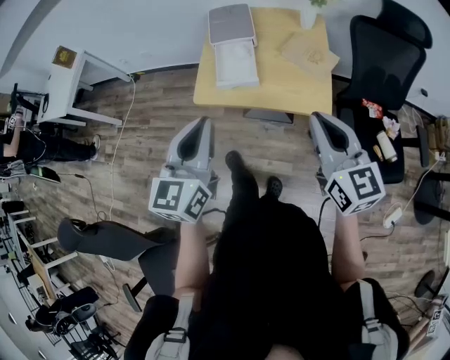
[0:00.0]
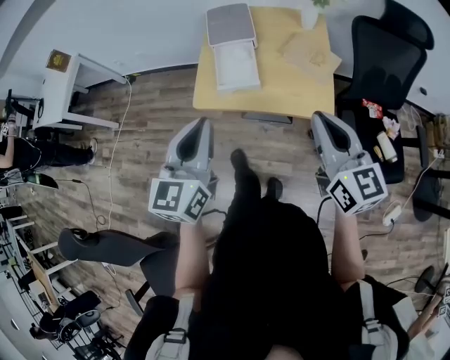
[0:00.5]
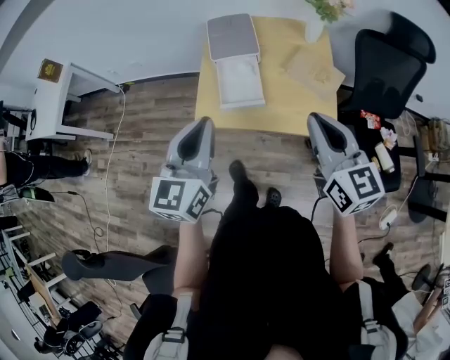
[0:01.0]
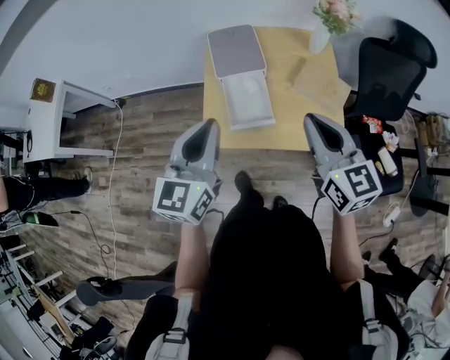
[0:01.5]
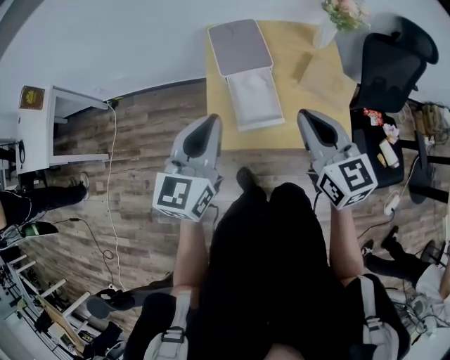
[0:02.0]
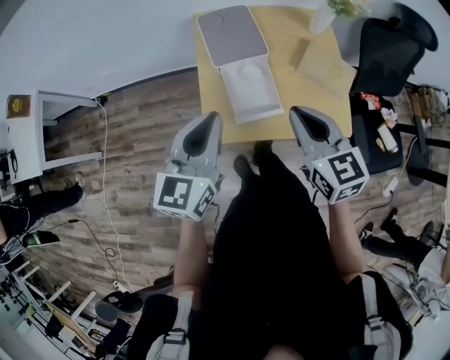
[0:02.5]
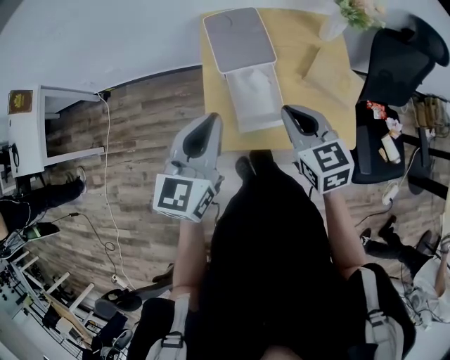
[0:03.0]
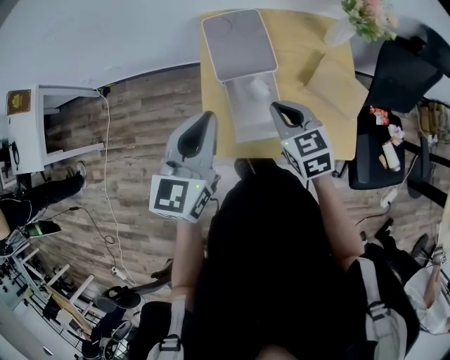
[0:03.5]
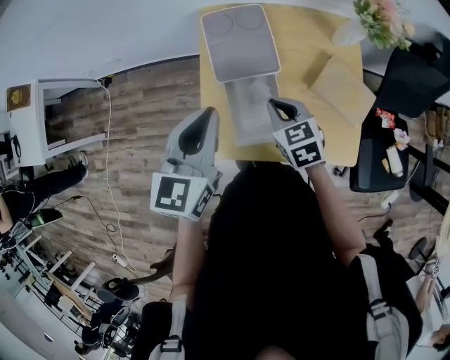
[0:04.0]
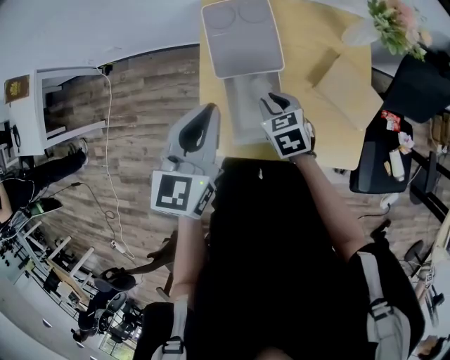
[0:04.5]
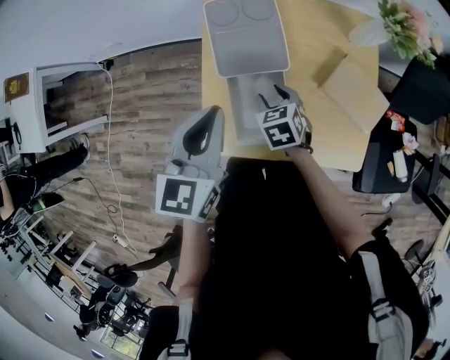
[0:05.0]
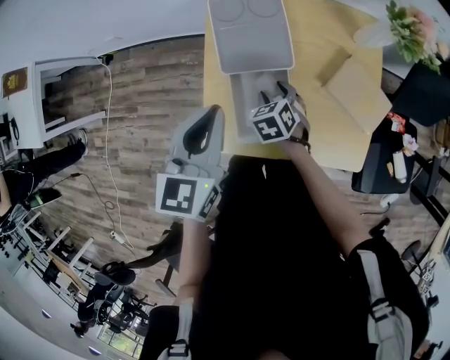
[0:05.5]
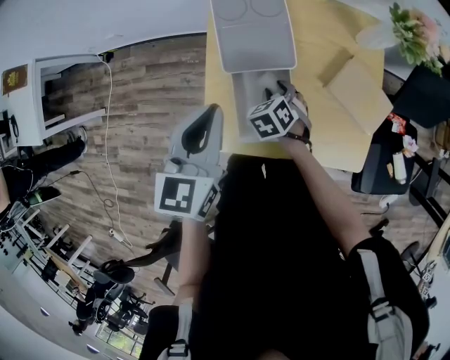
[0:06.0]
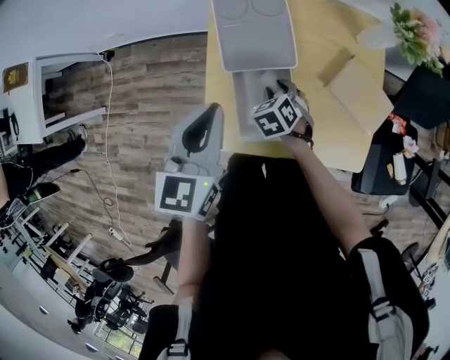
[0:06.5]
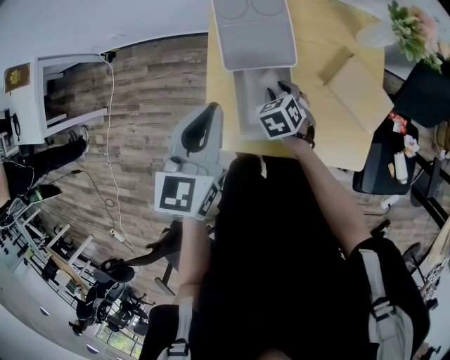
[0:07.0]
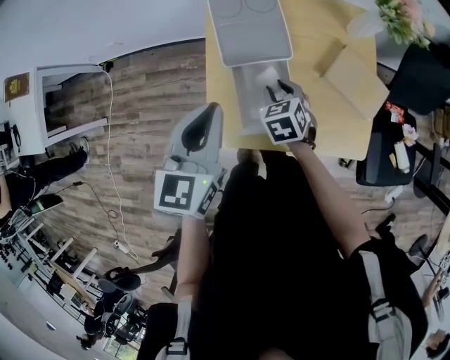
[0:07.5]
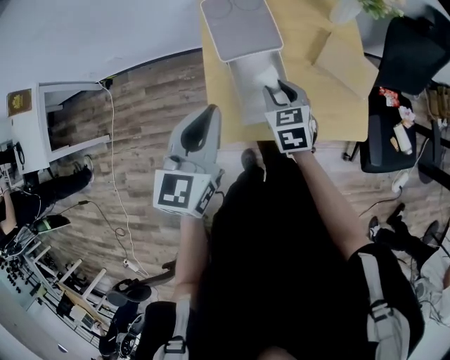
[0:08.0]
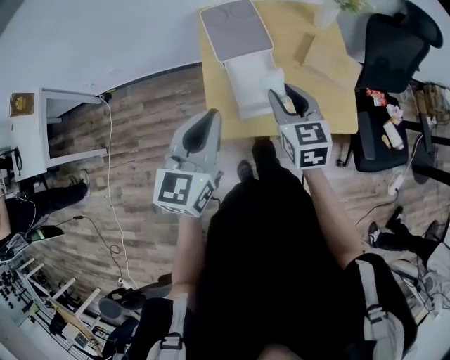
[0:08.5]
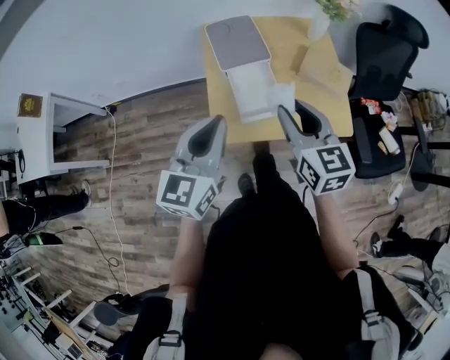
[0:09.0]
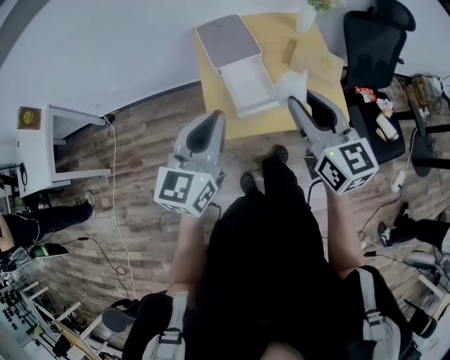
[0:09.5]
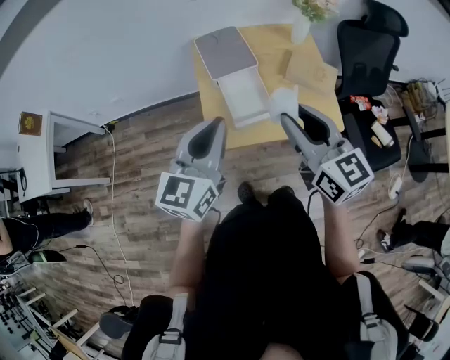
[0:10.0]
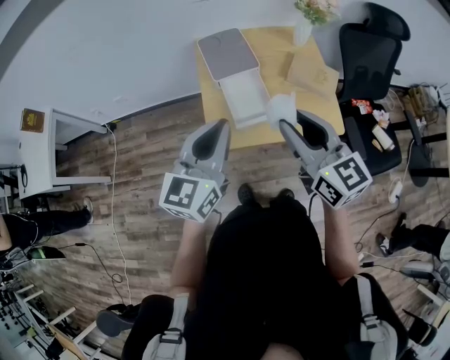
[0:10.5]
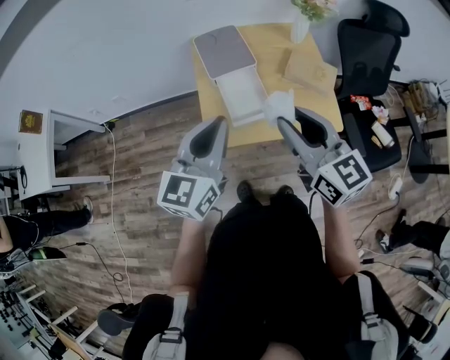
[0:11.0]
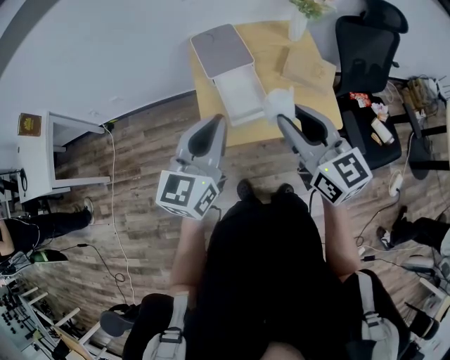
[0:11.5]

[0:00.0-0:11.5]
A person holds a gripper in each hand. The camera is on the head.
0:00.0 to 0:02.0: The two grippers go approximately 30 cm forward and to the left.
0:02.0 to 0:04.0: The right gripper heads downward and forward, covering roughly 30 cm, and changes its angle by about 30 degrees, while the left gripper goes some 15 cm forward.
0:04.0 to 0:06.0: The left gripper changes place by approximately 5 cm; the right gripper goes approximately 15 cm downward, rotates some 30 degrees, and opens.
0:06.0 to 0:07.5: The right gripper goes roughly 5 cm upward.
0:07.5 to 0:09.5: The left gripper travels backward and upward by some 25 cm, and rotates roughly 20 degrees. The right gripper moves upward and backward, some 40 cm, and tips its fingers upward by some 50 degrees.
0:09.5 to 0:11.5: The grippers move only a little.

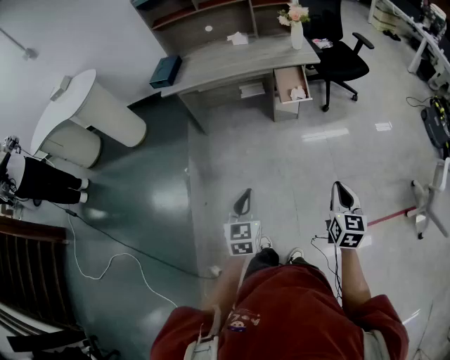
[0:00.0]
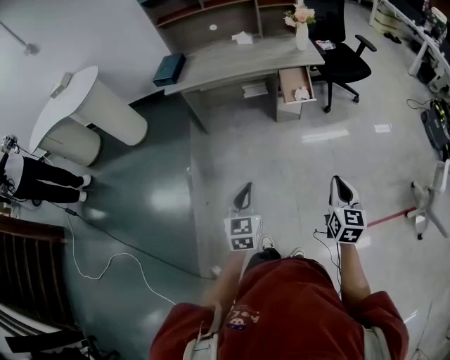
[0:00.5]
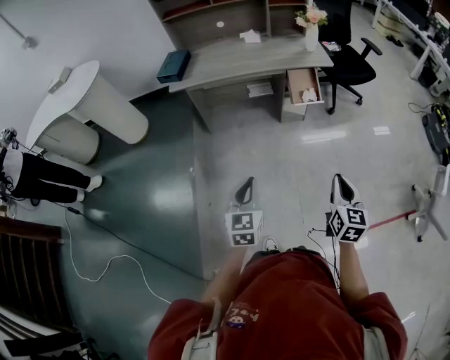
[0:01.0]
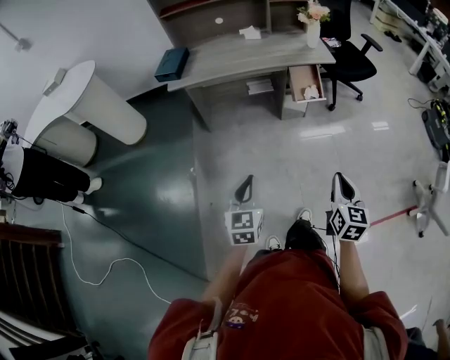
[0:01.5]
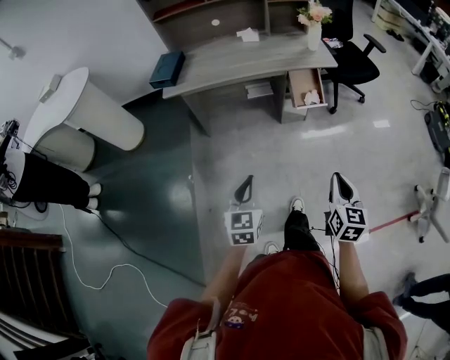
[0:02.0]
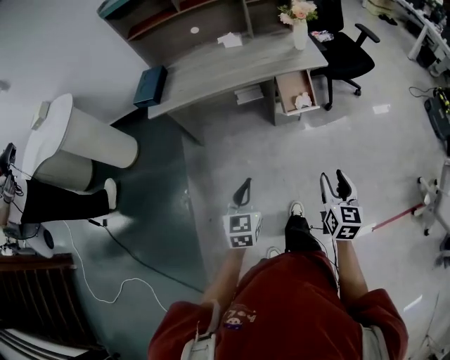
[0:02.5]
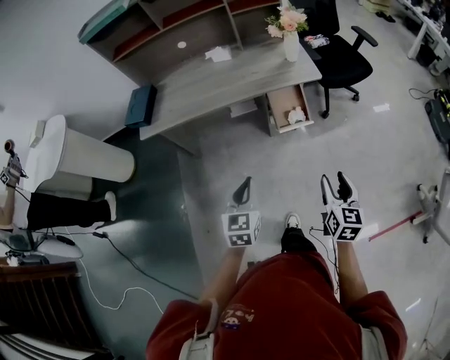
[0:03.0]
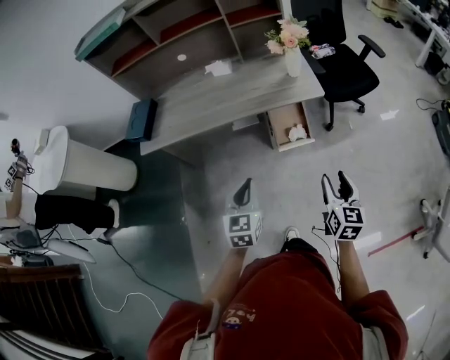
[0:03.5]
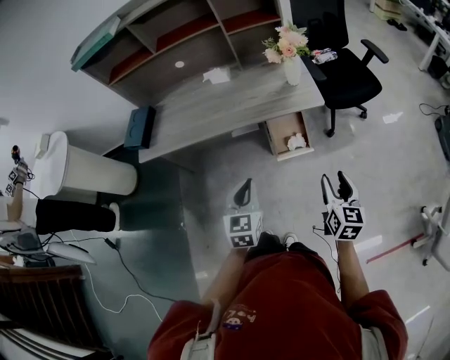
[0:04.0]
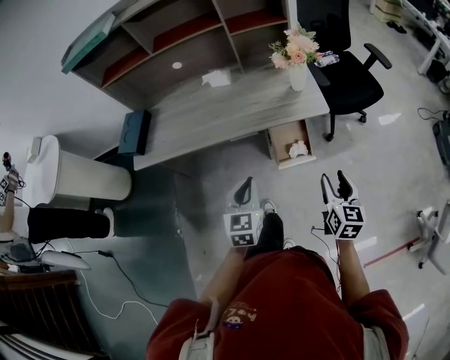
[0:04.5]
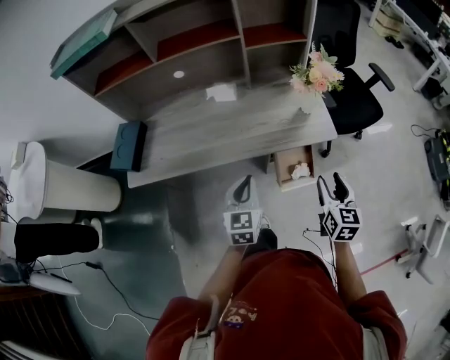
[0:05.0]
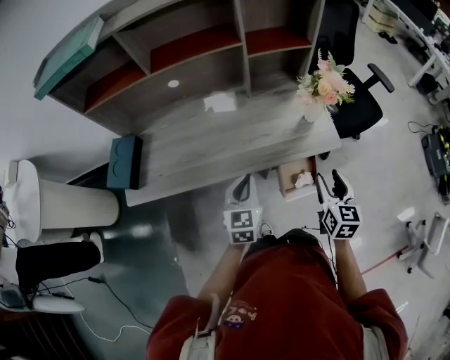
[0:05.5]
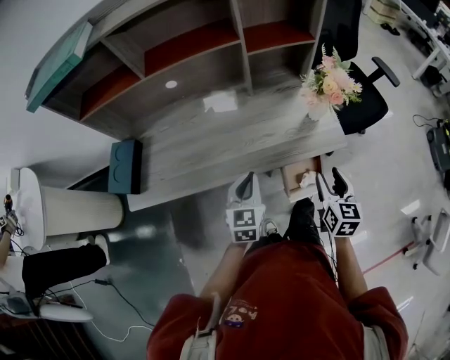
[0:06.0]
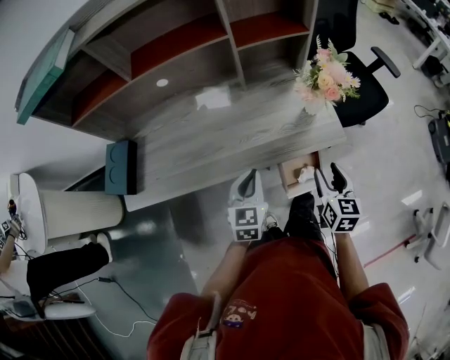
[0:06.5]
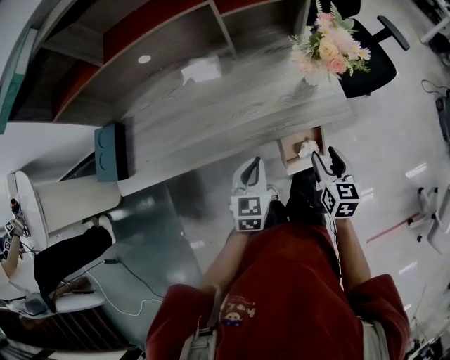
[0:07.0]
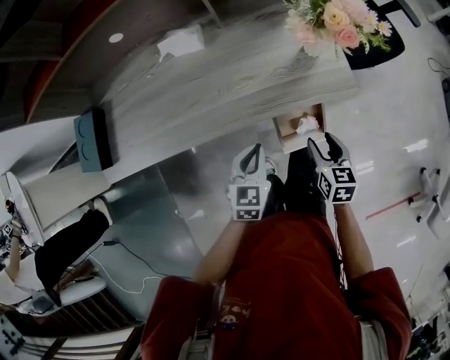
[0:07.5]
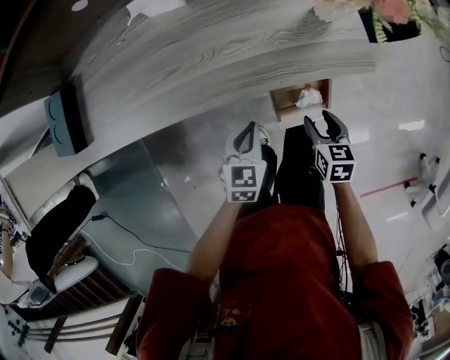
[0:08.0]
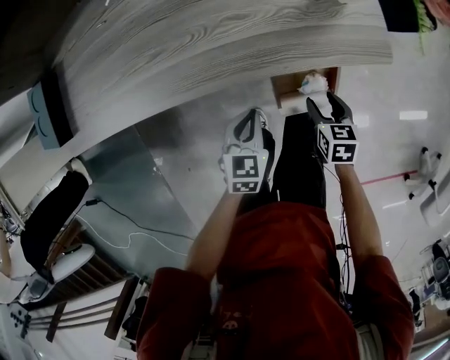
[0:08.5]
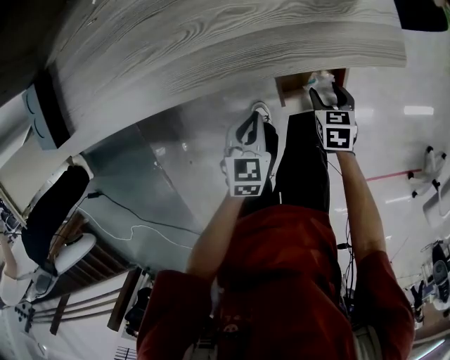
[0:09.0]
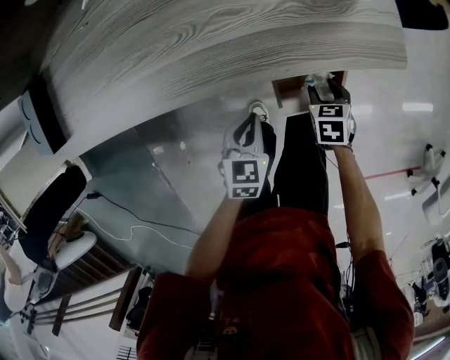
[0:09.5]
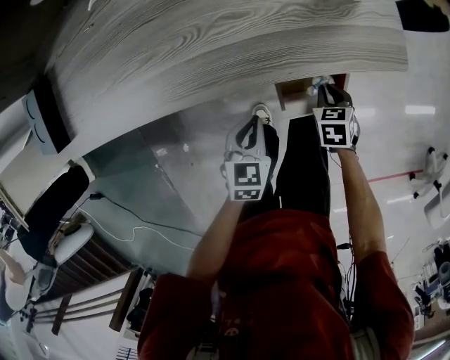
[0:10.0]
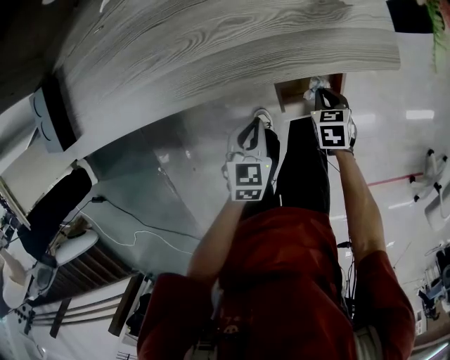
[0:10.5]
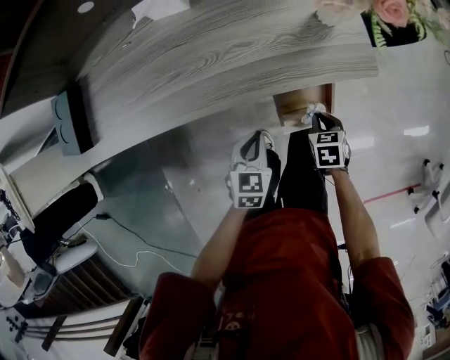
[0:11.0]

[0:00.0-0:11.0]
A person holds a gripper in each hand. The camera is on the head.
0:00.0 to 0:02.0: The grippers both shift forward and to the left by some 15 cm.
0:02.0 to 0:03.5: Both grippers travel together forward and to the right, some 35 cm. The right gripper opens.
0:03.5 to 0:05.5: Both grippers travel together forward, some 30 cm.
0:05.5 to 0:07.5: The left gripper travels downward and to the right by about 20 cm, while the right gripper shifts approximately 20 cm downward, and rotates roughly 20 degrees.
0:07.5 to 0:09.0: The grippers both shift downward by roughly 20 cm. The right gripper turns by some 20 degrees.
0:09.0 to 0:11.0: The grippers both shift upward by roughly 5 cm. The right gripper closes up.

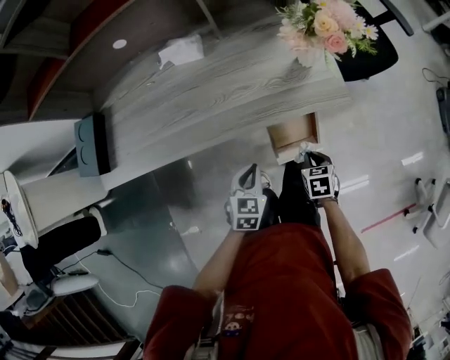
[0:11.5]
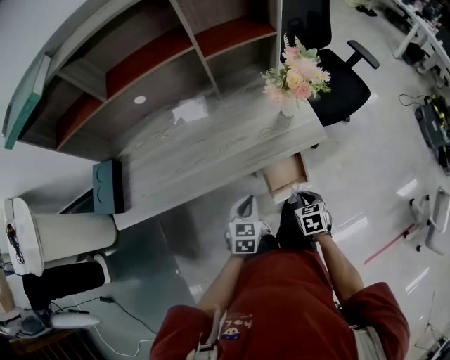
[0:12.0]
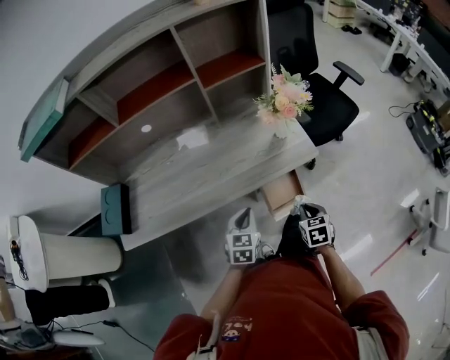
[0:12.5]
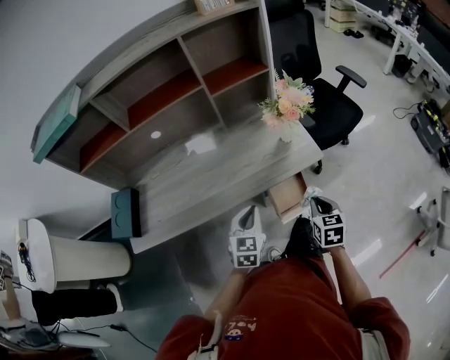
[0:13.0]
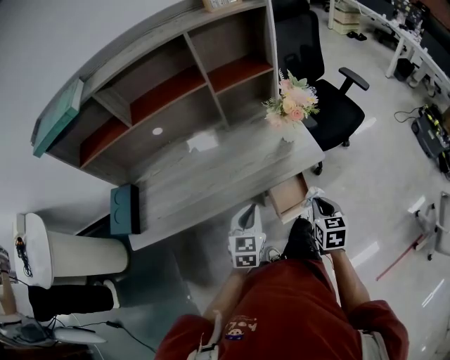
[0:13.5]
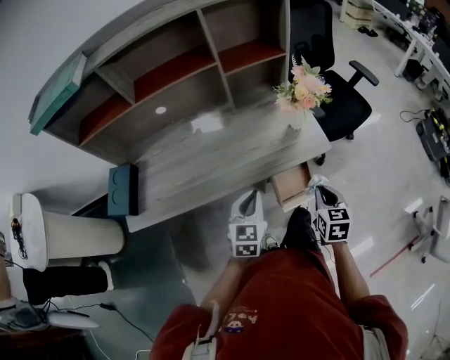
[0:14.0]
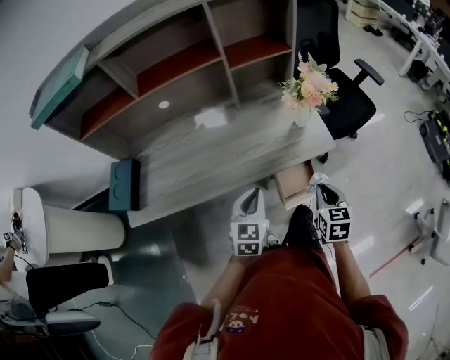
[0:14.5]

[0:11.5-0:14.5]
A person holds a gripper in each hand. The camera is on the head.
0:11.5 to 0:13.0: The grippers both shift upward by about 20 cm. The right gripper changes its angle by approximately 30 degrees.
0:13.0 to 0:14.5: There are only small adjustments of the grippers.

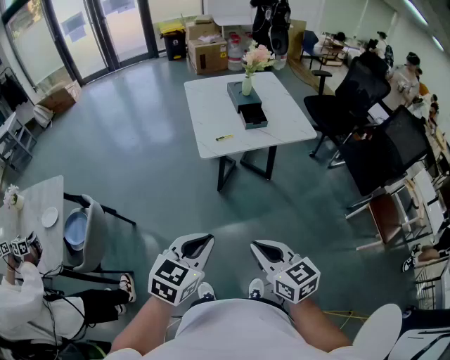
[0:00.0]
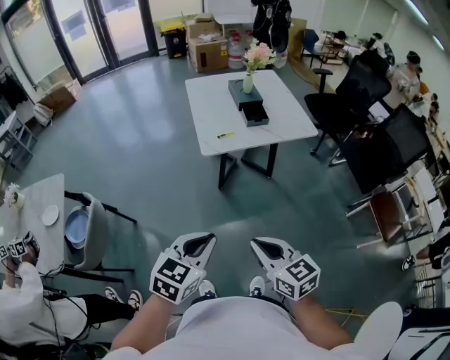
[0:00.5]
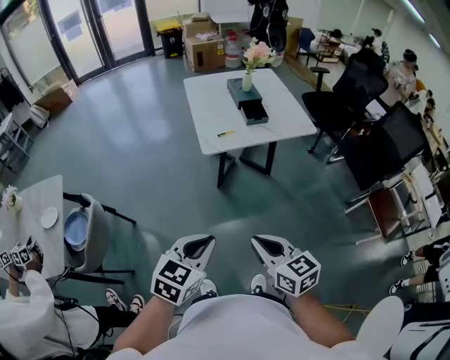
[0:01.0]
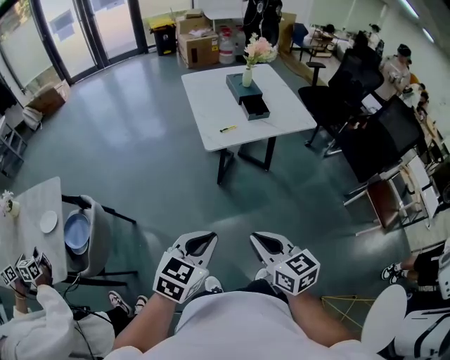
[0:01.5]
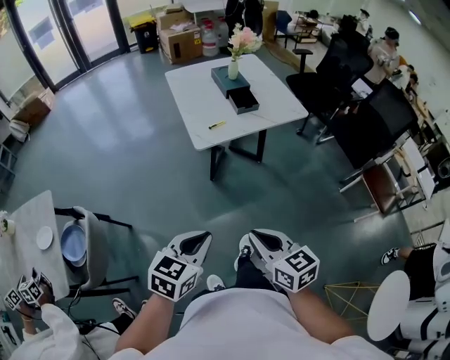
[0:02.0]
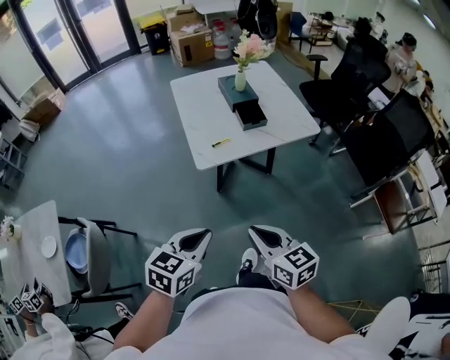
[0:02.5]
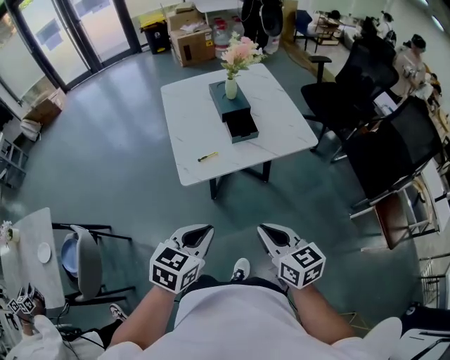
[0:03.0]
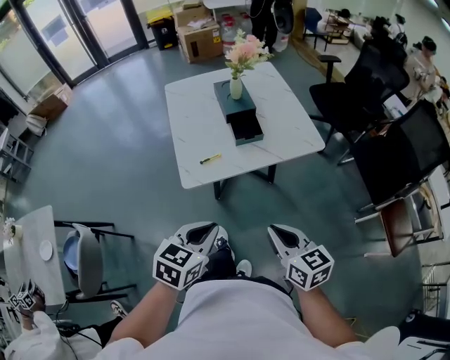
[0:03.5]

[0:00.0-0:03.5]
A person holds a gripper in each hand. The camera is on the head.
0:00.0 to 0:02.0: Both grippers travel together to the left, some 5 cm.
0:02.0 to 0:03.5: The grippers both shift forward and to the right by some 30 cm.
